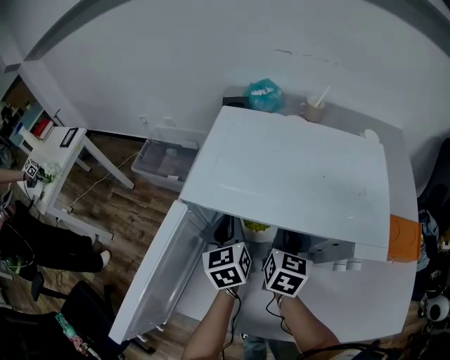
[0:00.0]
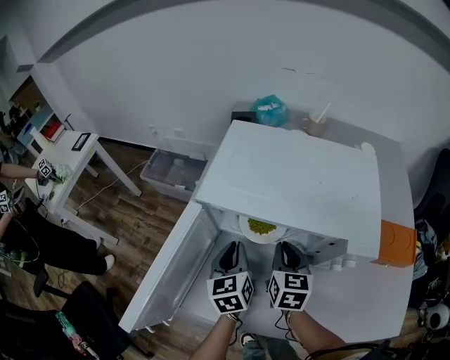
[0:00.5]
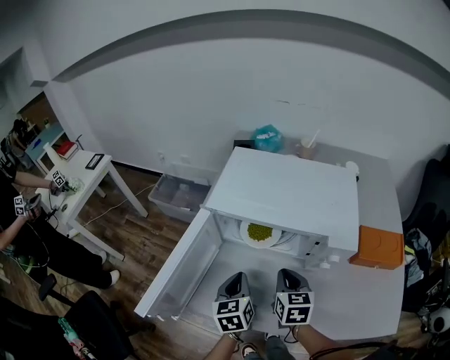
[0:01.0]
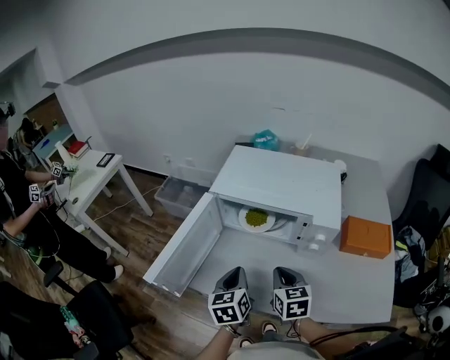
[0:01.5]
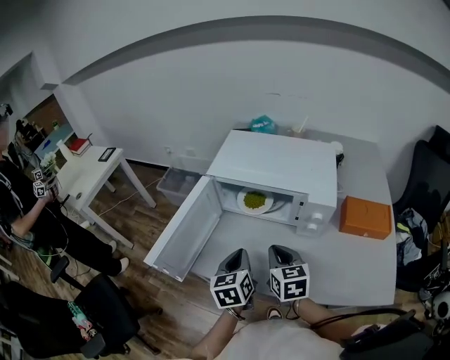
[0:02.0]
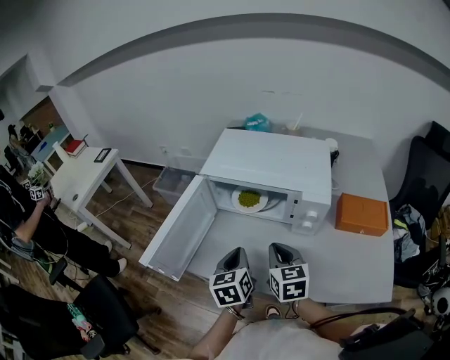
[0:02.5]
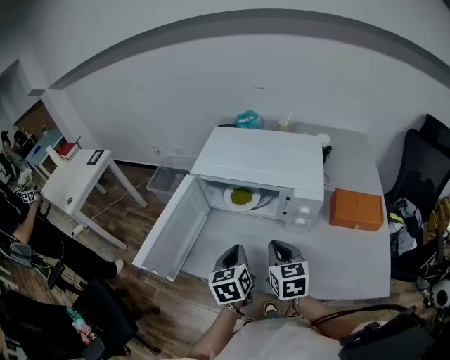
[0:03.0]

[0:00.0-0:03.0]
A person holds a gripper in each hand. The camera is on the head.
0:00.0 to 0:01.5: Both grippers travel together backward, about 25 cm. The right gripper rotates roughly 30 degrees.
0:01.5 to 0:03.0: The grippers make only small movements.

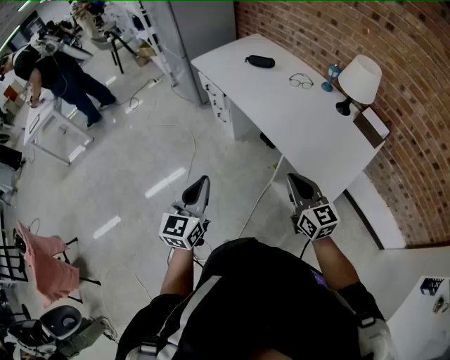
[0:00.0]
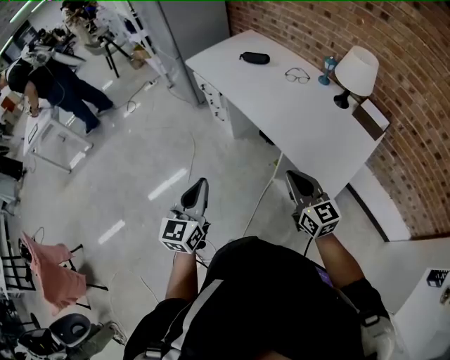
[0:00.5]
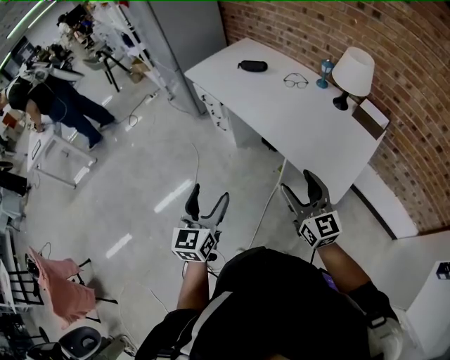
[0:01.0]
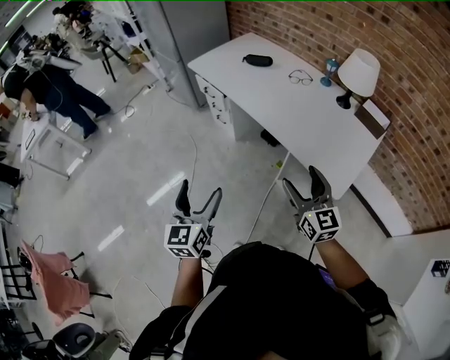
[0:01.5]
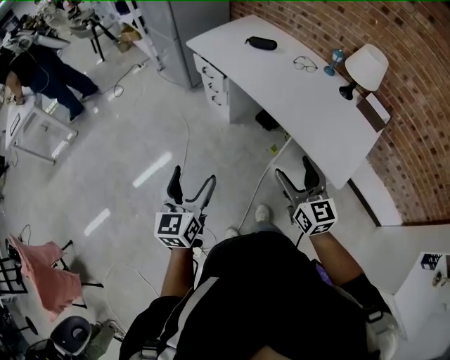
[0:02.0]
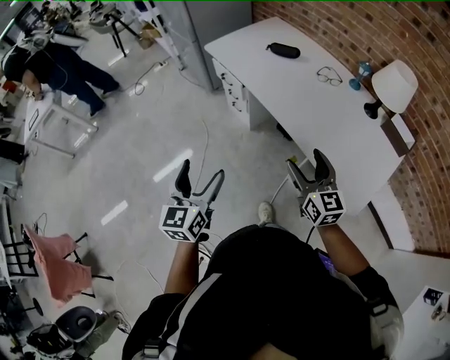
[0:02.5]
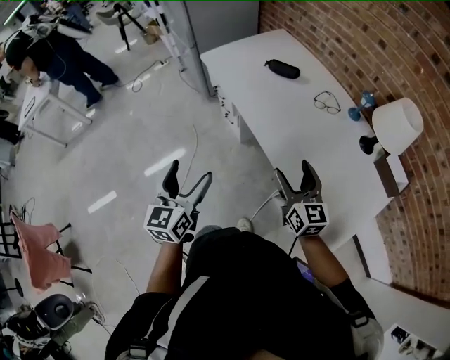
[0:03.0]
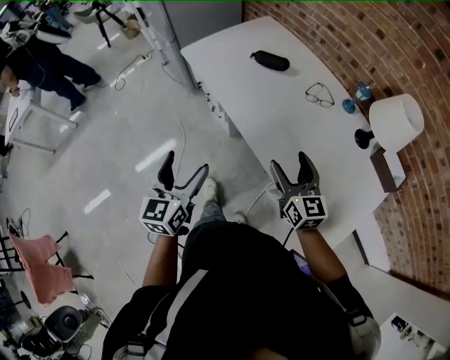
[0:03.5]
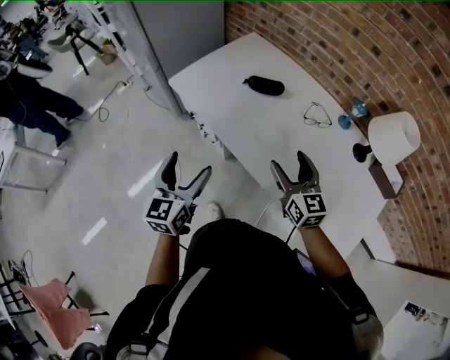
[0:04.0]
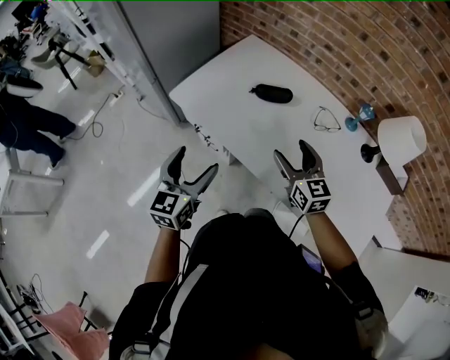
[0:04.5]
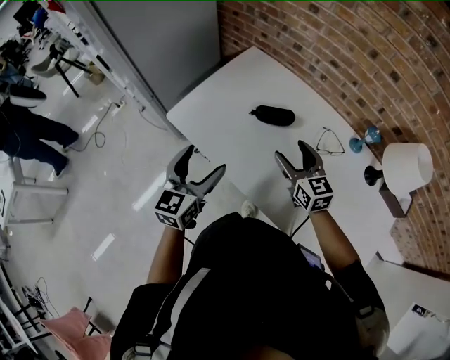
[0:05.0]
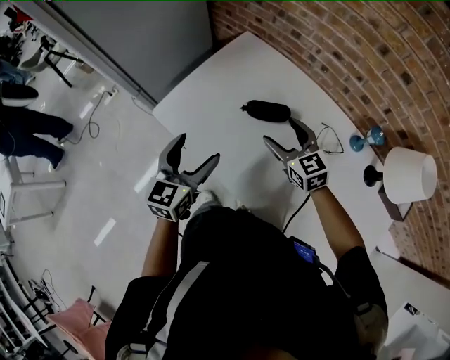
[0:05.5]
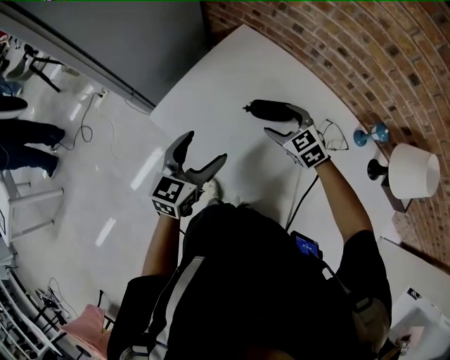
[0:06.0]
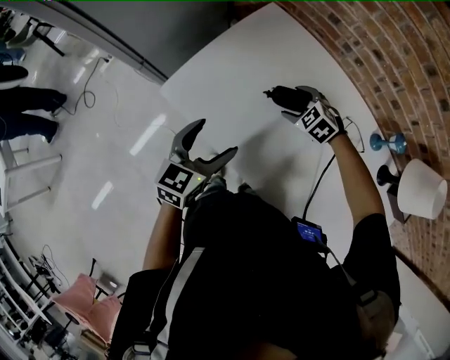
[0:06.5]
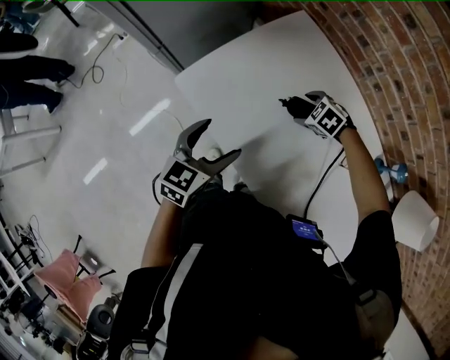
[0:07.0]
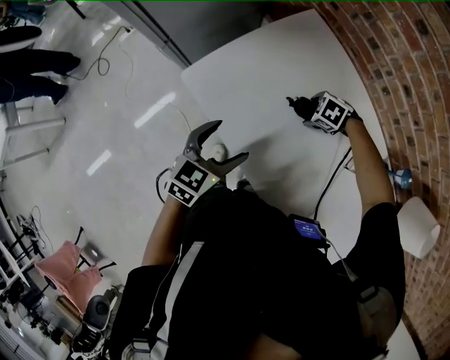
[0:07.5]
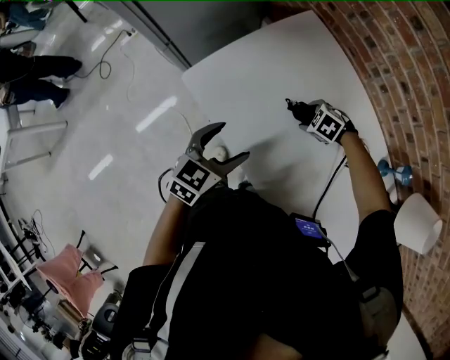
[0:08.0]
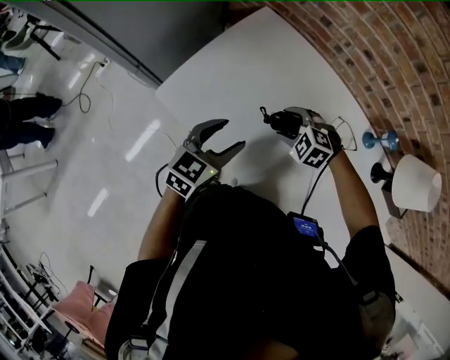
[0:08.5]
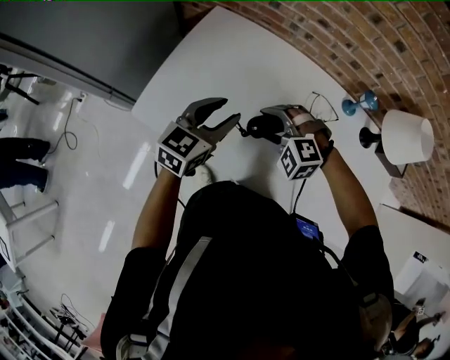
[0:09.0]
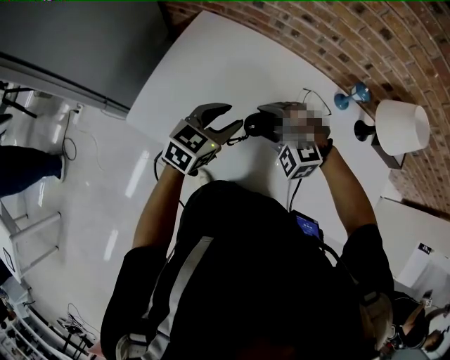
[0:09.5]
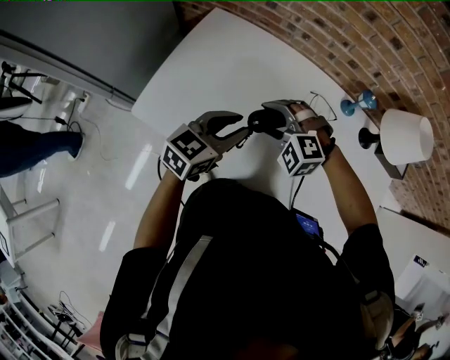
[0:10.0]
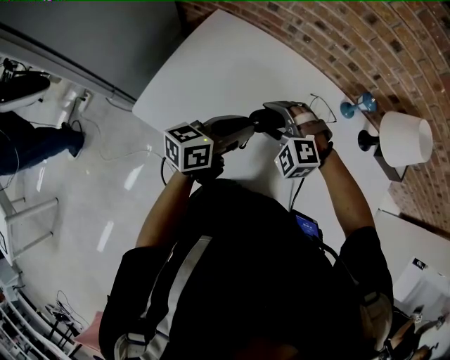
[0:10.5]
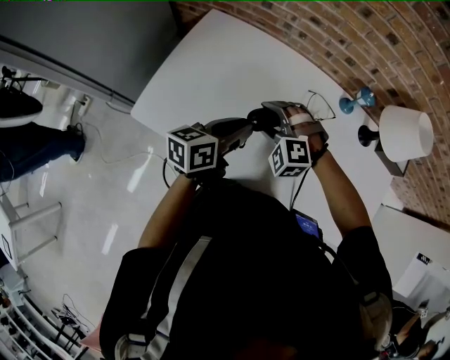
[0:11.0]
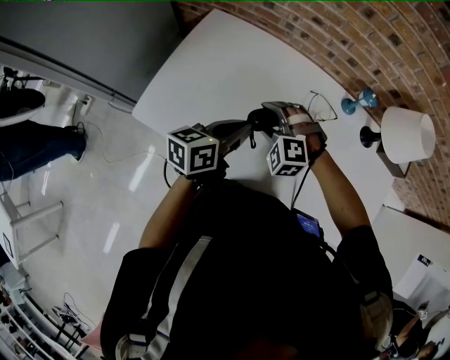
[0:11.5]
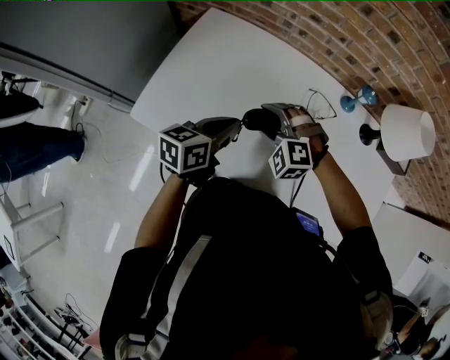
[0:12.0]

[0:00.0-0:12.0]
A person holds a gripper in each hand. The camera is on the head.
0:00.0 to 0:02.0: The grippers both shift to the left by some 10 cm. The right gripper opens up; the left gripper opens.
0:02.0 to 0:04.0: The pair of grippers is taken forward, roughly 40 cm.
0:04.0 to 0:06.0: The grippers both shift forward by about 30 cm. The left gripper swivels about 20 degrees. Meanwhile the right gripper angles its fingers downward, by roughly 30 degrees.
0:06.0 to 0:08.0: The right gripper moves downward, approximately 15 cm, and points its fingers roughly 30 degrees further downward, while the left gripper travels downward by approximately 5 cm.
0:08.0 to 0:10.0: The left gripper shifts by roughly 15 cm, turns by approximately 30 degrees, and closes its fingers; the right gripper goes approximately 15 cm upward, and swivels some 40 degrees.
0:10.0 to 0:12.0: The left gripper changes its angle by roughly 30 degrees.

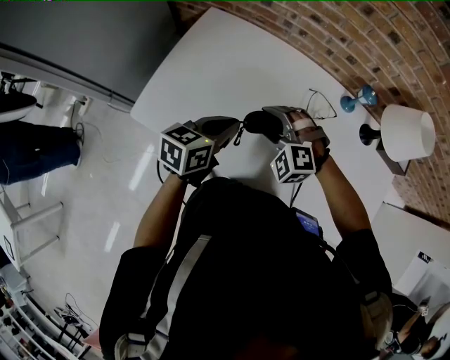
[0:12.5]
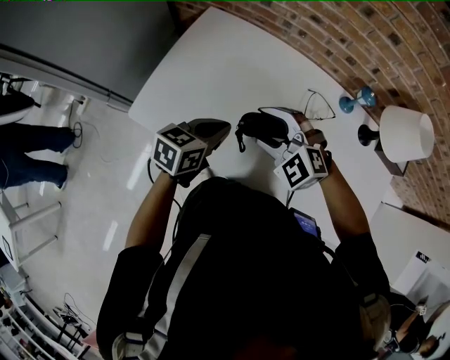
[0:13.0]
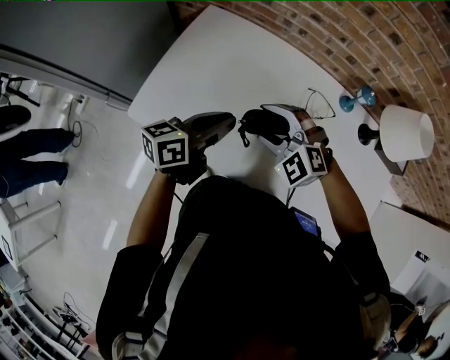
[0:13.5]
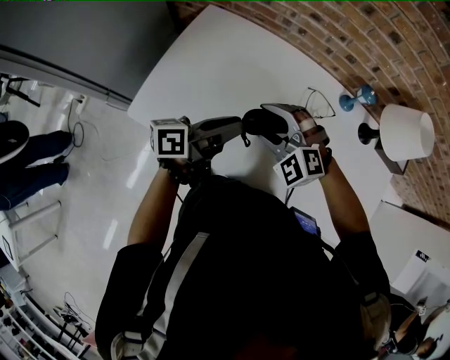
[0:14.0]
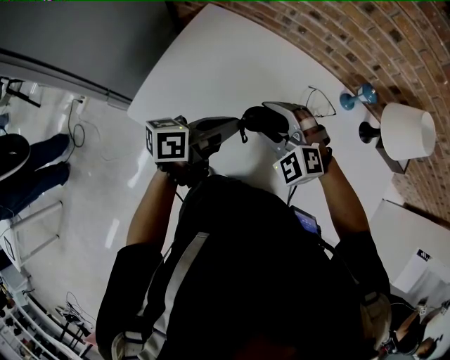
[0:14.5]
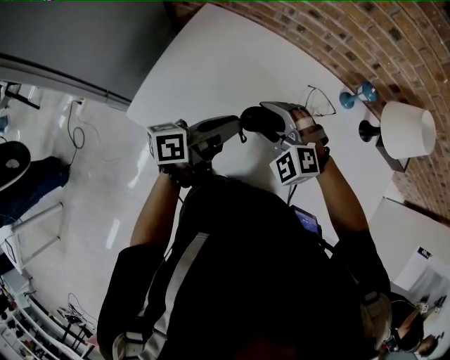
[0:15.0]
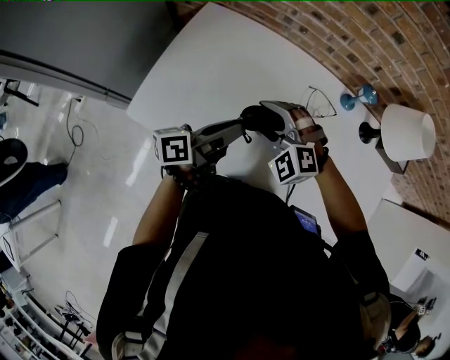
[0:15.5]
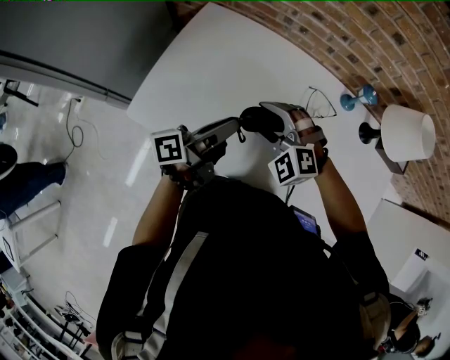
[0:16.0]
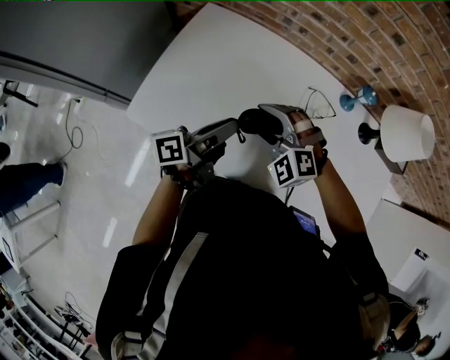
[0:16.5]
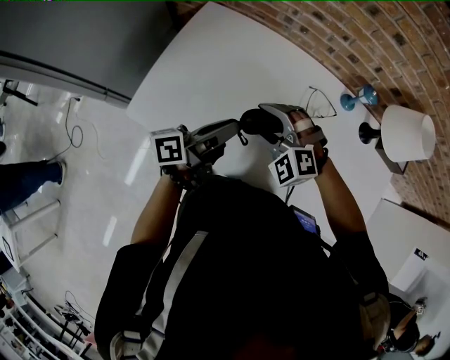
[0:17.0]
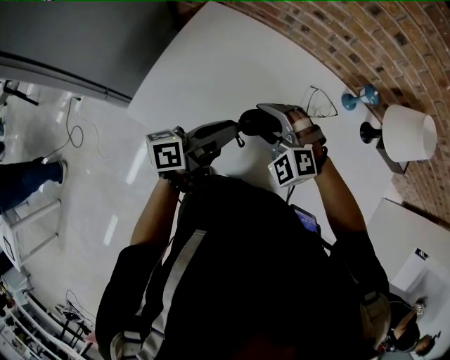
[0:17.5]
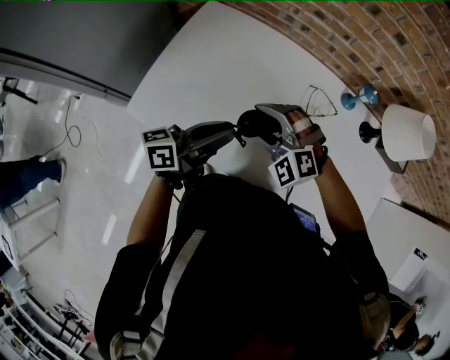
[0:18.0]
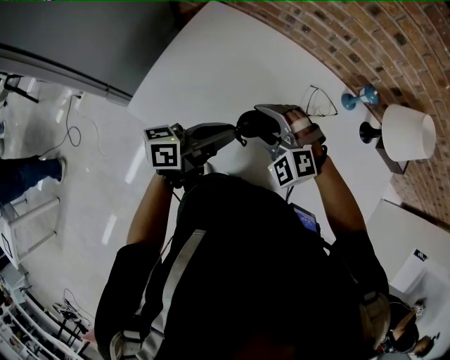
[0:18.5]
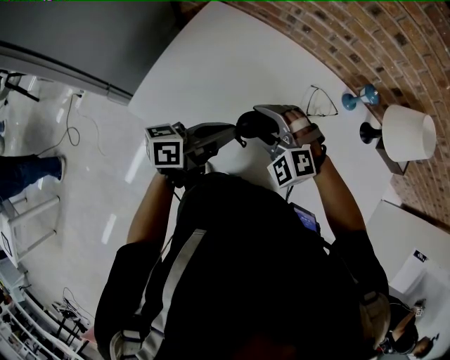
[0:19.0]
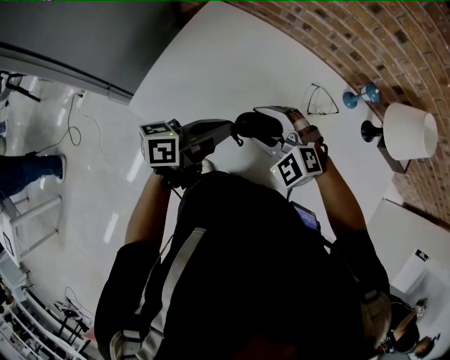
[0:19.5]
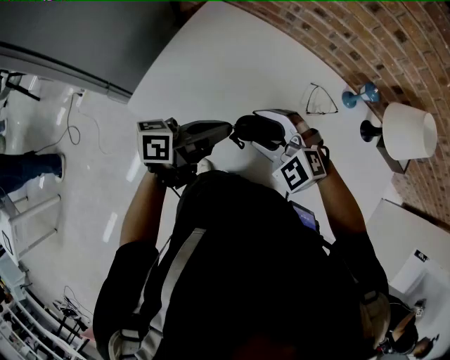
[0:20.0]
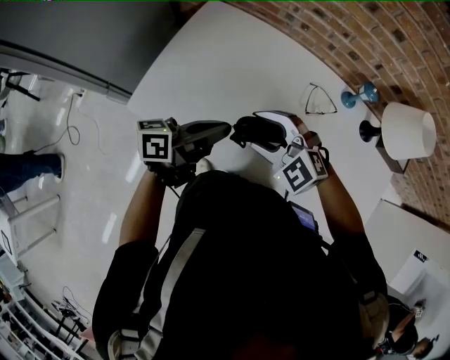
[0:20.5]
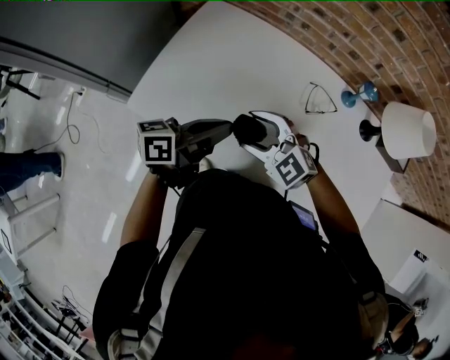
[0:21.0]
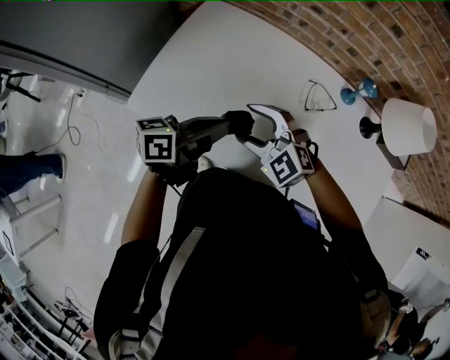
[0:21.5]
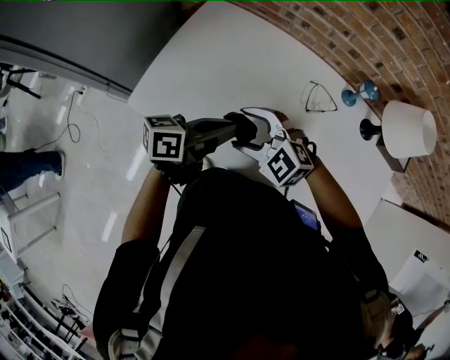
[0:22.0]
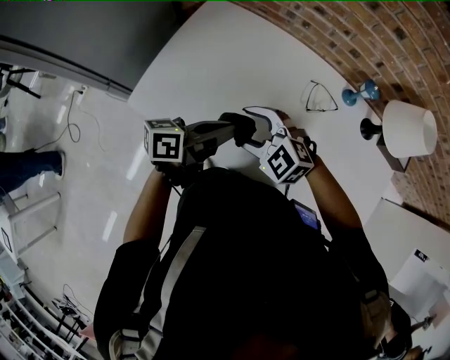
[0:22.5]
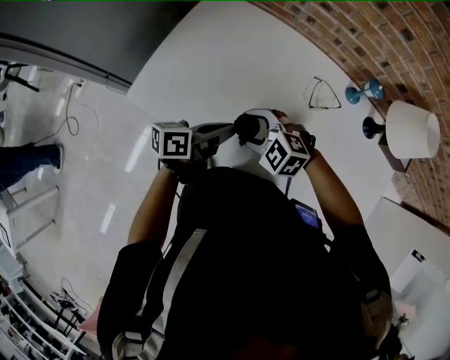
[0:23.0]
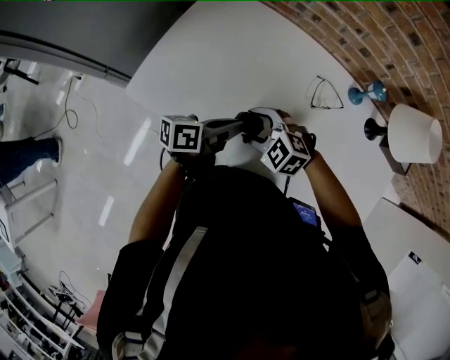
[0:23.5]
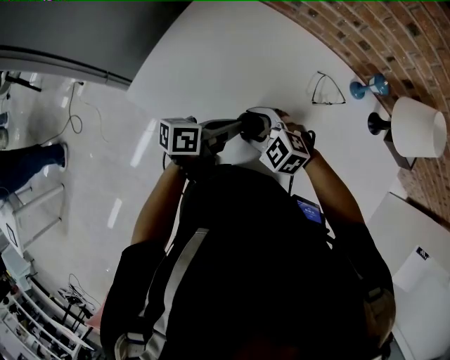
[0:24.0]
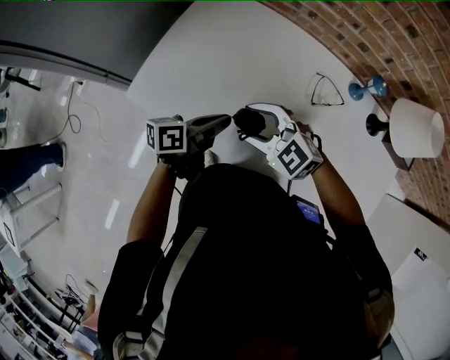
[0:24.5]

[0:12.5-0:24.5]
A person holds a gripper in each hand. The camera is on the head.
0:12.5 to 0:14.5: The left gripper swivels some 30 degrees.
0:14.5 to 0:16.5: The left gripper swivels approximately 20 degrees.
0:16.5 to 0:18.5: The left gripper changes its angle by about 20 degrees.
0:18.5 to 0:20.5: The right gripper changes place by approximately 5 cm, and rotates approximately 20 degrees.
0:20.5 to 0:22.5: There are only small adjustments of the grippers.
0:22.5 to 0:24.5: The left gripper goes some 10 cm downward, while the right gripper reaches some 10 cm downward, then returns.
